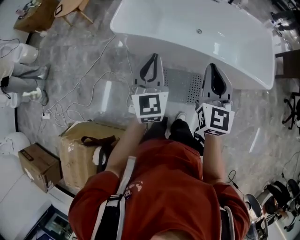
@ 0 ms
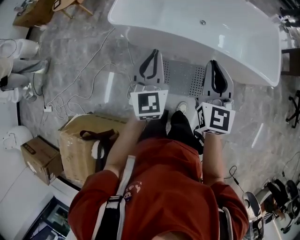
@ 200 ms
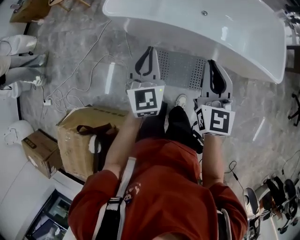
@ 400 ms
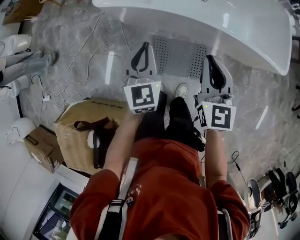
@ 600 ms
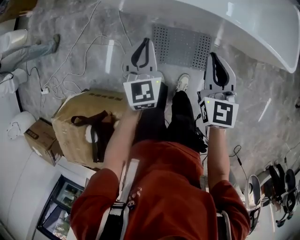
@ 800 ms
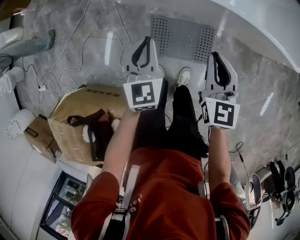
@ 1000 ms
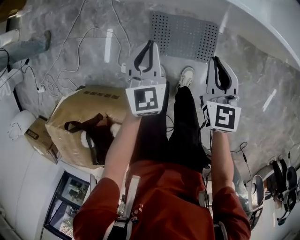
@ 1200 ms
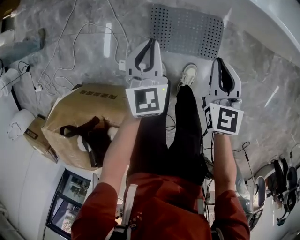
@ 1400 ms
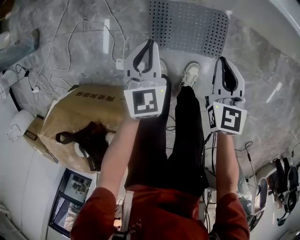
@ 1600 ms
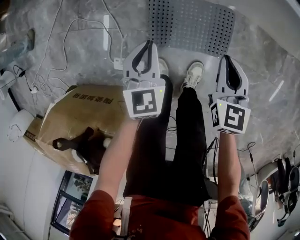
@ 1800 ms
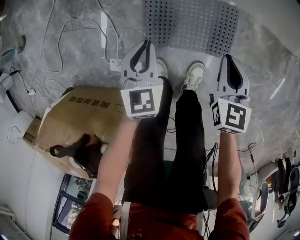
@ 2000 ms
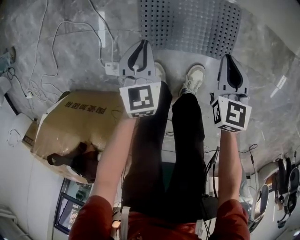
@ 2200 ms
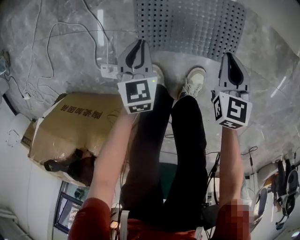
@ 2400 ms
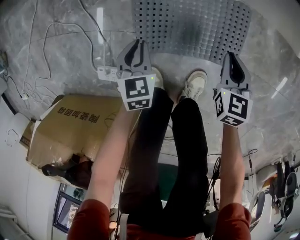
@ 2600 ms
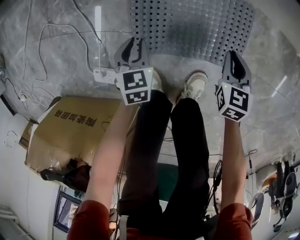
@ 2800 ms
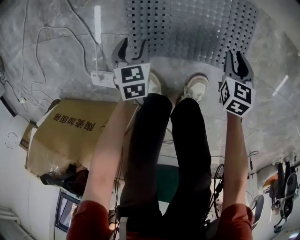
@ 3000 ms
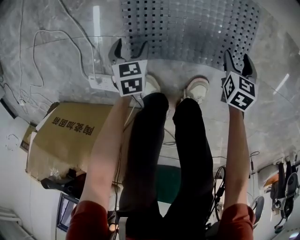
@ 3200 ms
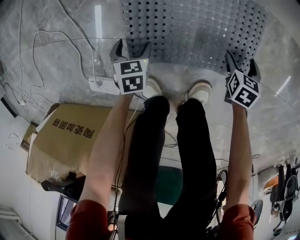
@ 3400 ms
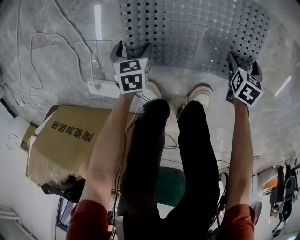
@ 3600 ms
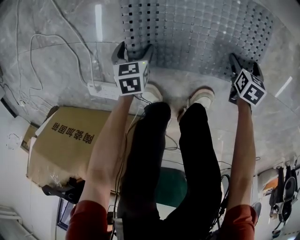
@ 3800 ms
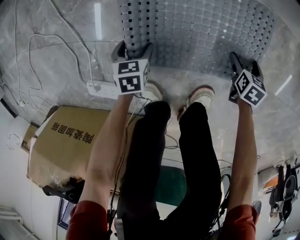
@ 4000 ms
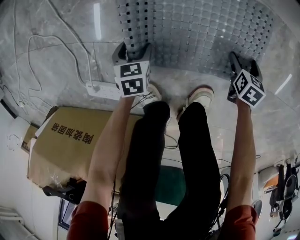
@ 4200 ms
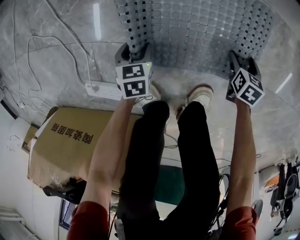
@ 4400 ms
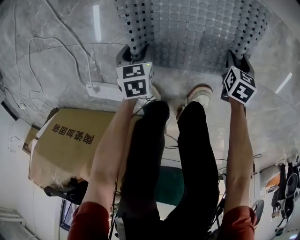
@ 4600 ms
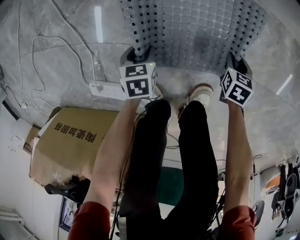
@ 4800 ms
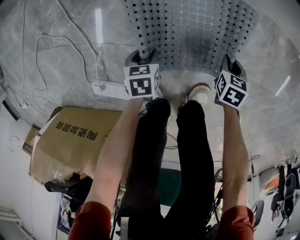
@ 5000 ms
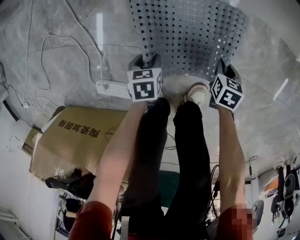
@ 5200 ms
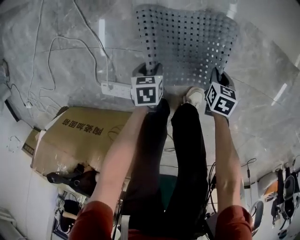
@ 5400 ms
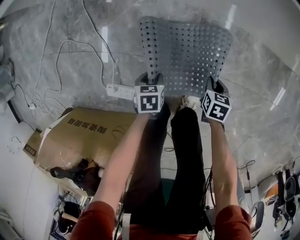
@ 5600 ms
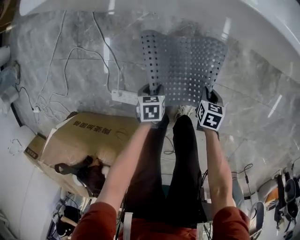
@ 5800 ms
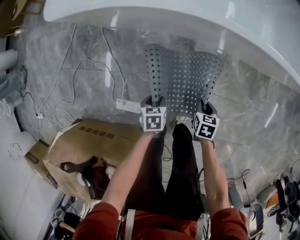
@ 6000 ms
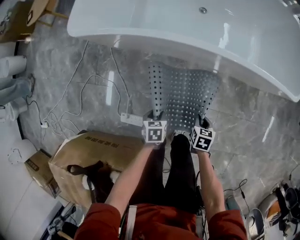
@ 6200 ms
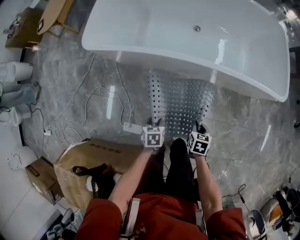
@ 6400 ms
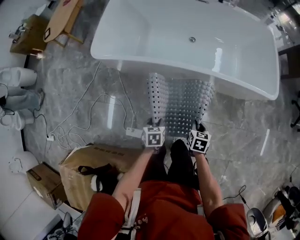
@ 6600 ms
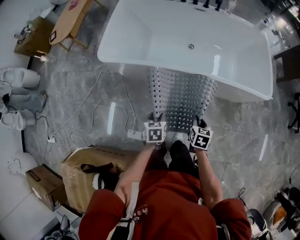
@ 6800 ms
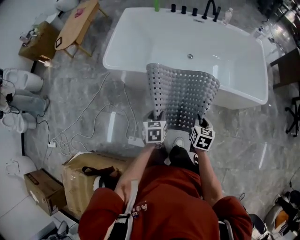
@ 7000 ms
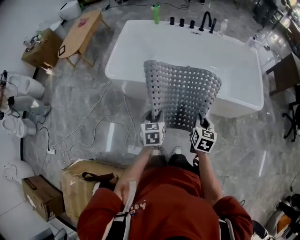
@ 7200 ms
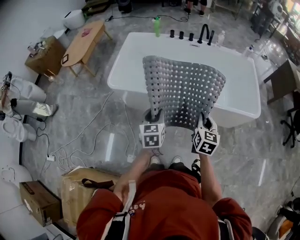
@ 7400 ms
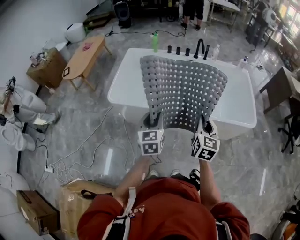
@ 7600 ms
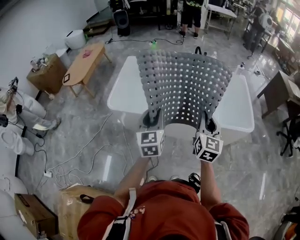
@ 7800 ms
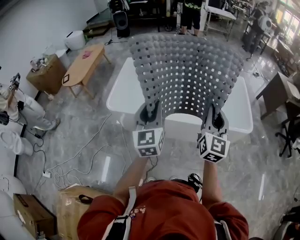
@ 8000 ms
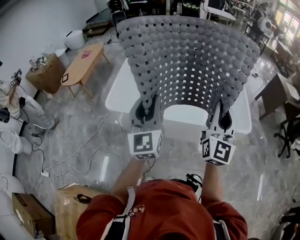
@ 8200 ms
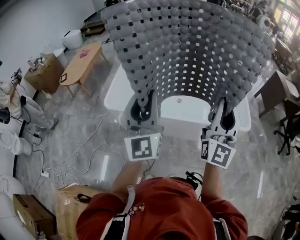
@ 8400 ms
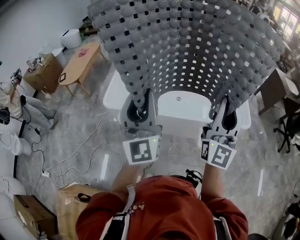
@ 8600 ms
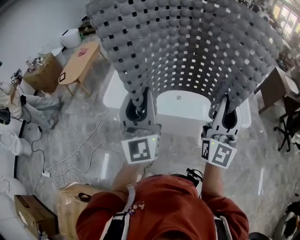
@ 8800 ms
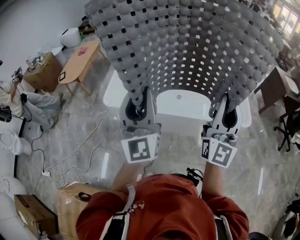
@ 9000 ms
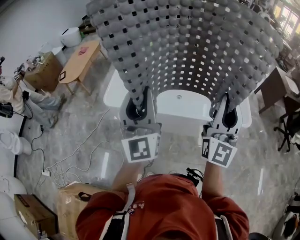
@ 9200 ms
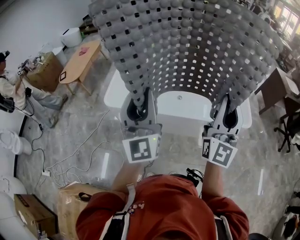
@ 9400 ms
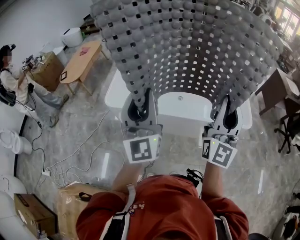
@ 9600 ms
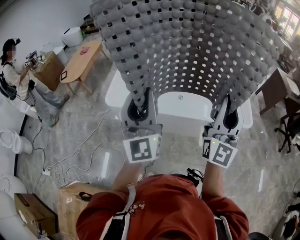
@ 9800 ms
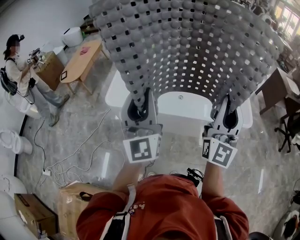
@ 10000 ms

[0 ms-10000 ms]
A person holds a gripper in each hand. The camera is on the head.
0 ms to 1400 ms: The grippers both shift downward by some 40 cm. The left gripper turns by about 20 degrees. The right gripper swivels roughly 30 degrees.
1400 ms to 2800 ms: Both grippers travel together downward, roughly 50 cm. The right gripper changes its angle by some 20 degrees, while the left gripper turns by approximately 30 degrees.
2800 ms to 4200 ms: The right gripper heads downward and to the right, covering approximately 20 cm, swivels about 20 degrees, and opens its fingers; the left gripper heads downward, covering about 15 cm, and opens up.
4200 ms to 5800 ms: The grippers both shift upward by about 30 cm. The left gripper closes. The right gripper closes.
5800 ms to 7200 ms: Both grippers move upward, some 60 cm. The right gripper tilts its fingers some 30 degrees upward, while the left gripper angles its fingers upward, by approximately 40 degrees.
7200 ms to 8600 ms: Both grippers travel together upward, approximately 40 cm. The right gripper points its fingers about 70 degrees further upward. Meanwhile the left gripper points its fingers roughly 70 degrees further upward.
8600 ms to 10000 ms: Neither gripper changes place.

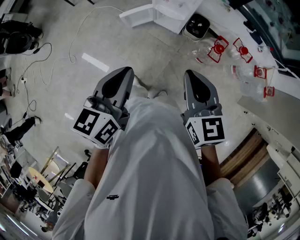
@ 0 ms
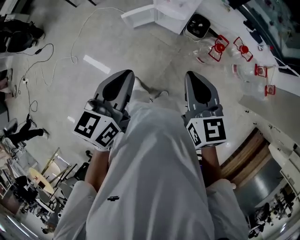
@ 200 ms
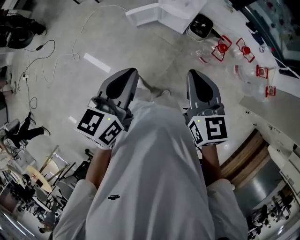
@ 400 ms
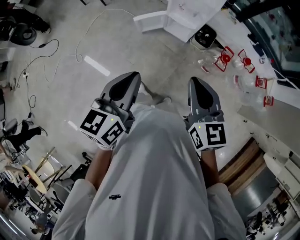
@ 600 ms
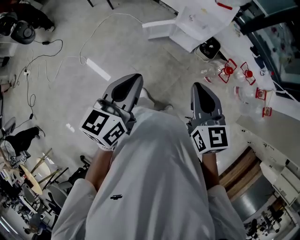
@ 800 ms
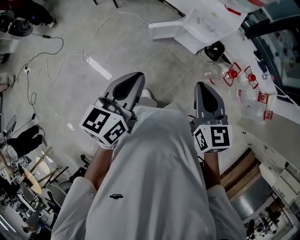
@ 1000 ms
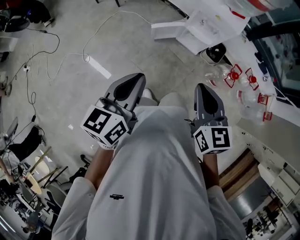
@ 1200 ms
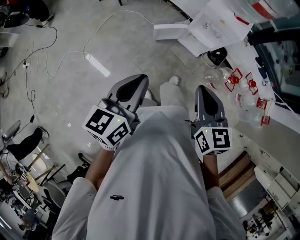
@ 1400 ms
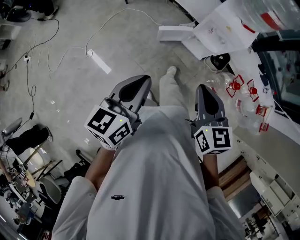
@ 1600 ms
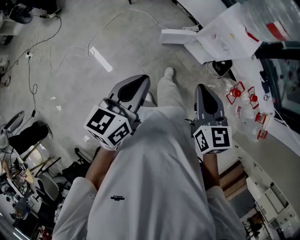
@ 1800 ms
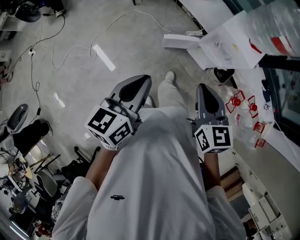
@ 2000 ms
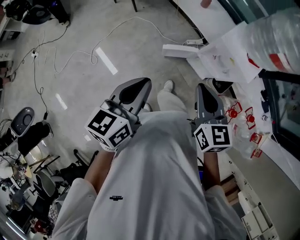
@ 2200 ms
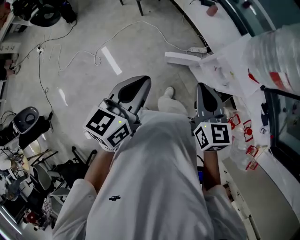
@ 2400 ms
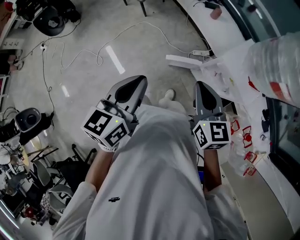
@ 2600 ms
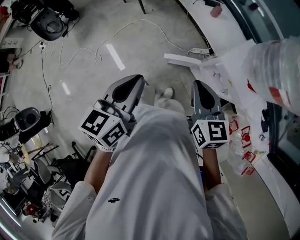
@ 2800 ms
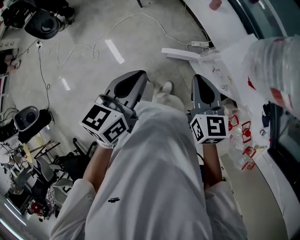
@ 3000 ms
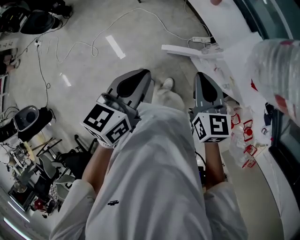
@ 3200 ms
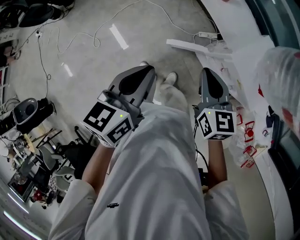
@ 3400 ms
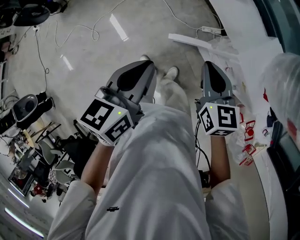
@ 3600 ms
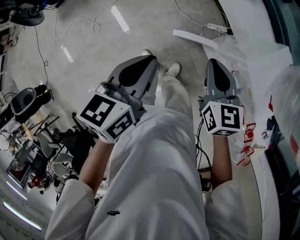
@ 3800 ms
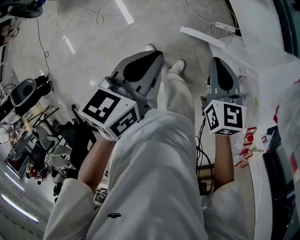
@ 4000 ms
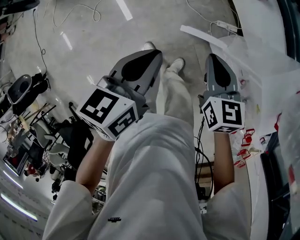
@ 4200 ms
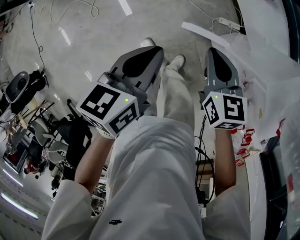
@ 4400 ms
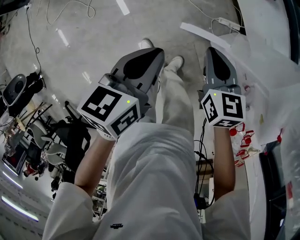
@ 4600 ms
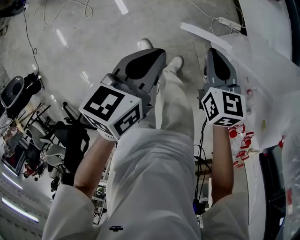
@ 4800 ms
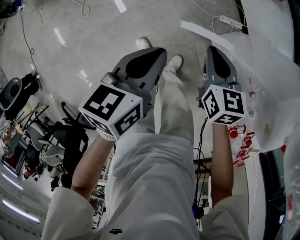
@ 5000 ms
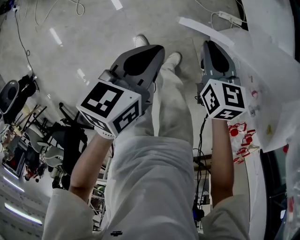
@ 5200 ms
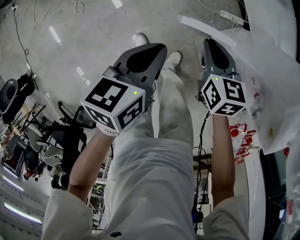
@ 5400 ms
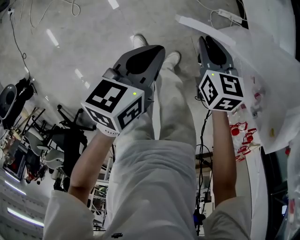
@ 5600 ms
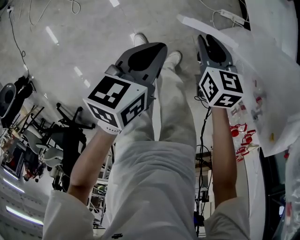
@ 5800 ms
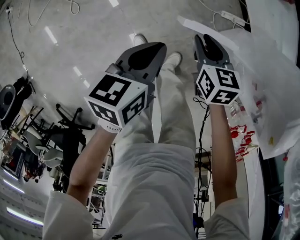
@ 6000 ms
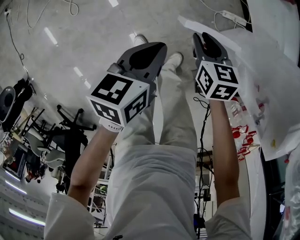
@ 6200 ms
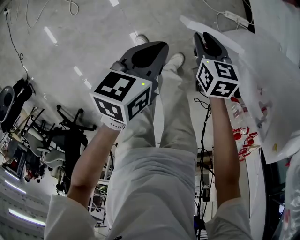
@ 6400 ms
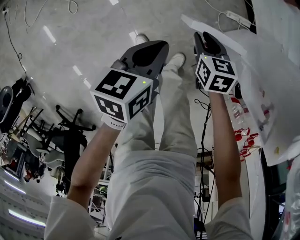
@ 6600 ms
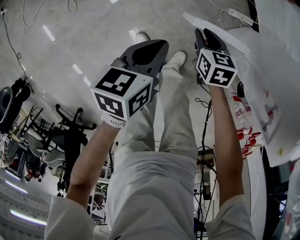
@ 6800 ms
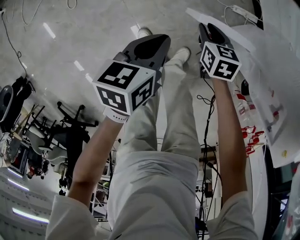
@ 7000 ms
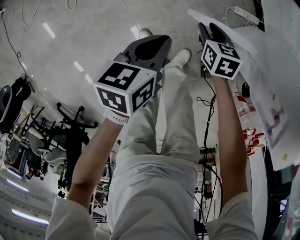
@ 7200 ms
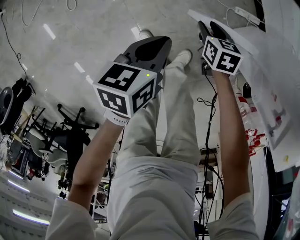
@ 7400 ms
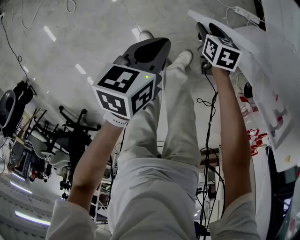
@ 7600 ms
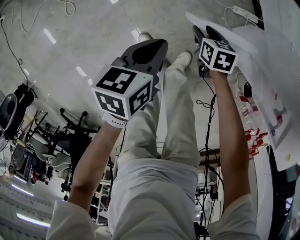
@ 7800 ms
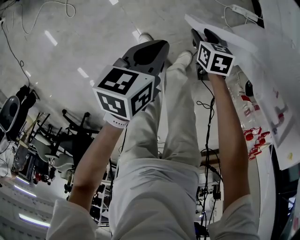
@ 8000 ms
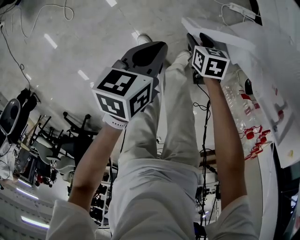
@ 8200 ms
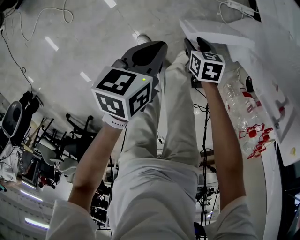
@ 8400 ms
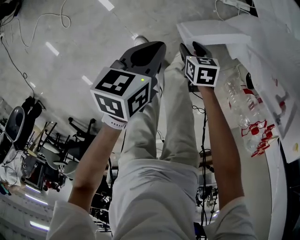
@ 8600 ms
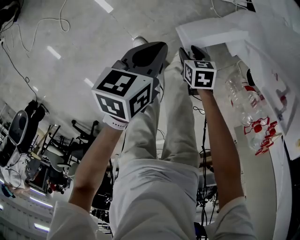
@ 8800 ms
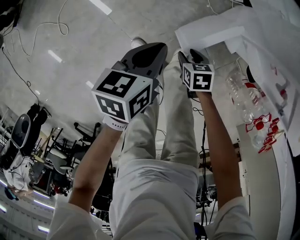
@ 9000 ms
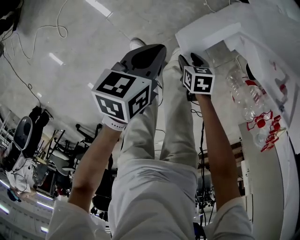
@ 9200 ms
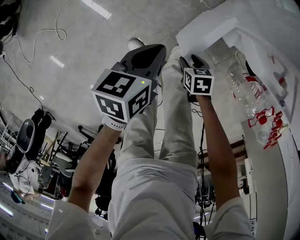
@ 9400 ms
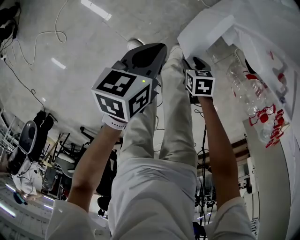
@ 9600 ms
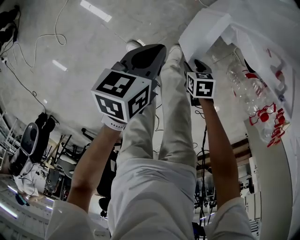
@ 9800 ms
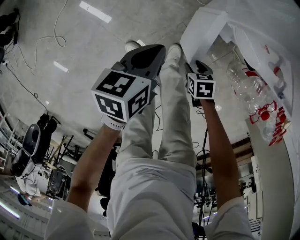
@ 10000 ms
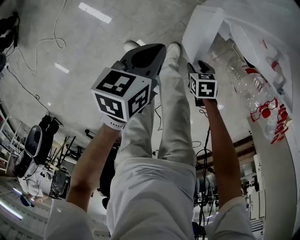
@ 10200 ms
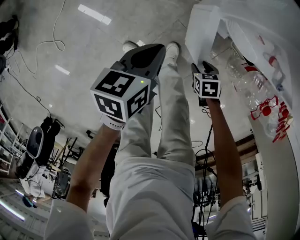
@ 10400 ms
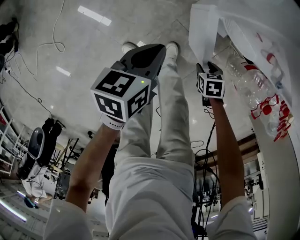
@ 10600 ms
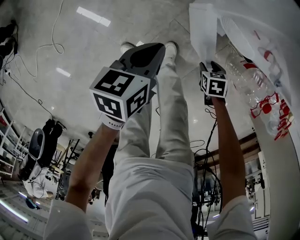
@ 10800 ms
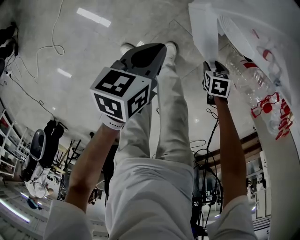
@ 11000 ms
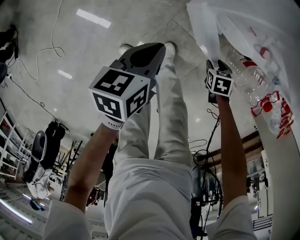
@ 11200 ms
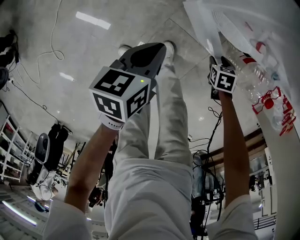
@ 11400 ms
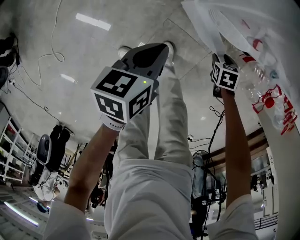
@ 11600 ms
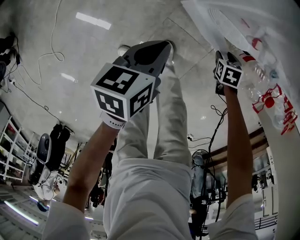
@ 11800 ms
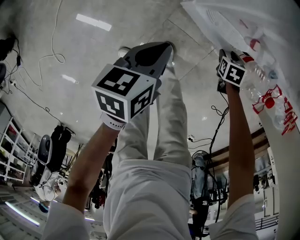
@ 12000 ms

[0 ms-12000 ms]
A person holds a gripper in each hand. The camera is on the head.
0 ms to 1600 ms: Both grippers move to the left, approximately 20 cm.
1600 ms to 3000 ms: The two grippers go roughly 30 cm forward.
3000 ms to 4400 ms: The grippers both shift downward and forward by some 20 cm.
4400 ms to 6000 ms: The grippers both shift downward by roughly 20 cm. The right gripper opens.
6000 ms to 7600 ms: The left gripper shifts approximately 10 cm downward. Meanwhile the right gripper moves downward, some 20 cm.
7600 ms to 9000 ms: The left gripper goes about 5 cm to the right. The right gripper travels backward by roughly 15 cm.
9000 ms to 10400 ms: The left gripper moves approximately 10 cm. The right gripper moves about 15 cm.
10400 ms to 12000 ms: The right gripper shifts by about 20 cm, and changes its angle by approximately 20 degrees; the left gripper moves roughly 10 cm.

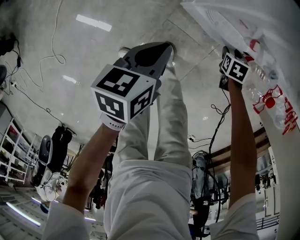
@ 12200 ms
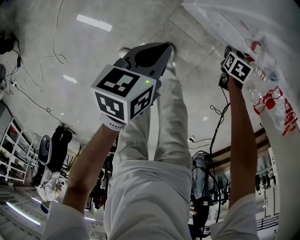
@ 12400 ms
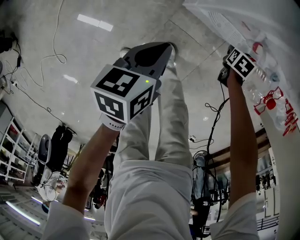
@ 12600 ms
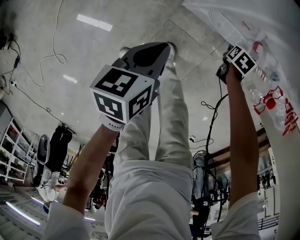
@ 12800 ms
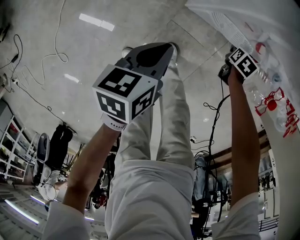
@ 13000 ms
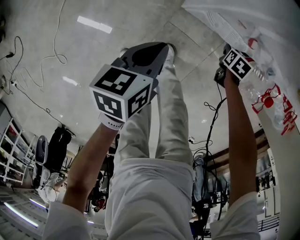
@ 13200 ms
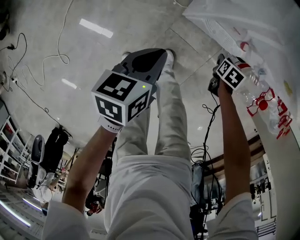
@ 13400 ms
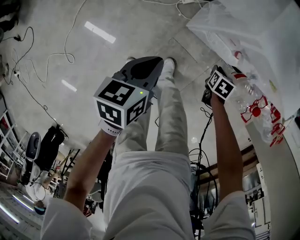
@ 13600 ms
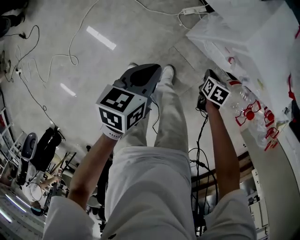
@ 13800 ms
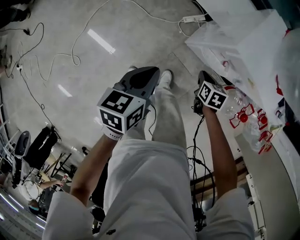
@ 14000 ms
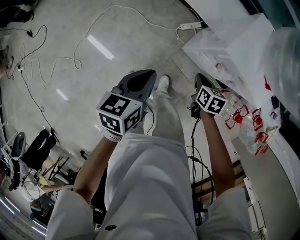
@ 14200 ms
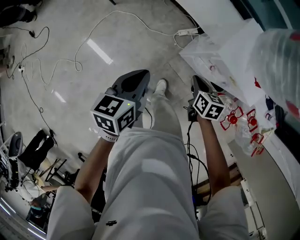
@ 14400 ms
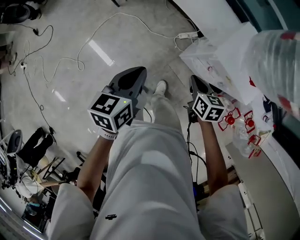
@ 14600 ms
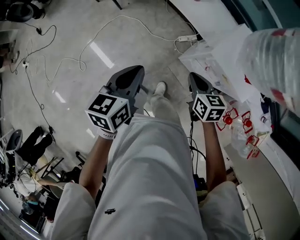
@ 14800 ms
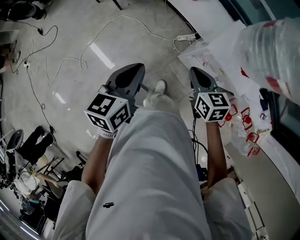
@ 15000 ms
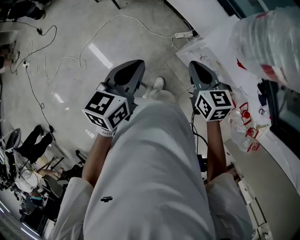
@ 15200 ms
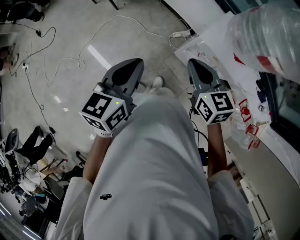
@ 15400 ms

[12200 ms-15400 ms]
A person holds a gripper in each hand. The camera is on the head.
12200 ms to 13800 ms: The grippers both shift upward by roughly 15 cm. The right gripper closes up.
13800 ms to 15400 ms: The left gripper heads upward, covering about 30 cm, and changes its angle by about 30 degrees. The right gripper shifts about 50 cm upward, and tips its fingers upward by some 40 degrees.
